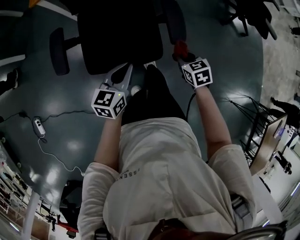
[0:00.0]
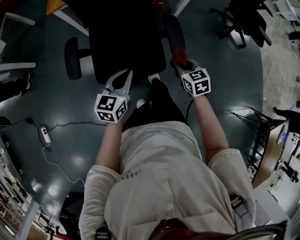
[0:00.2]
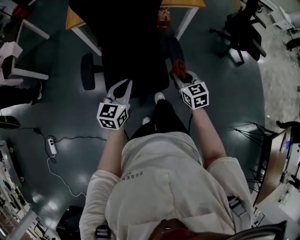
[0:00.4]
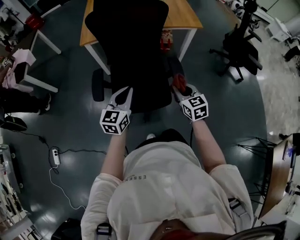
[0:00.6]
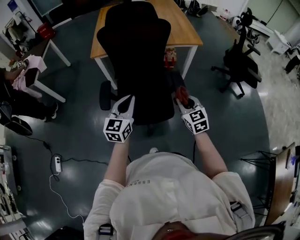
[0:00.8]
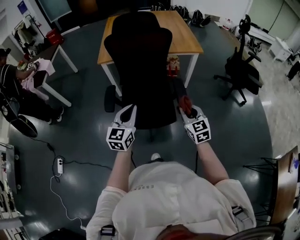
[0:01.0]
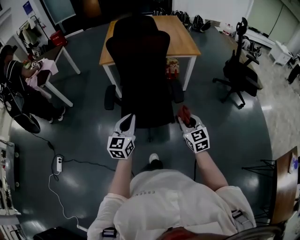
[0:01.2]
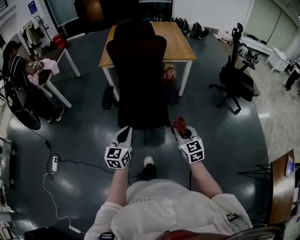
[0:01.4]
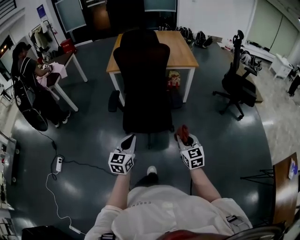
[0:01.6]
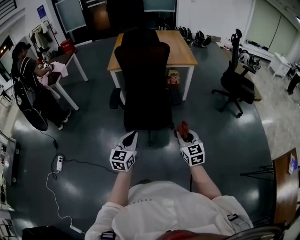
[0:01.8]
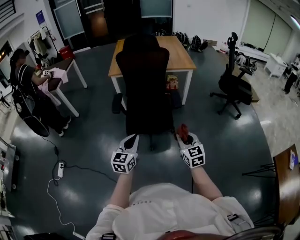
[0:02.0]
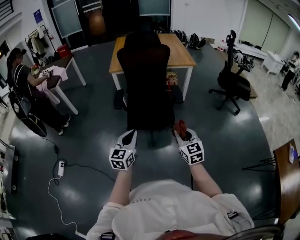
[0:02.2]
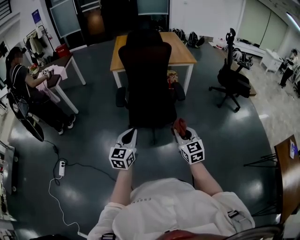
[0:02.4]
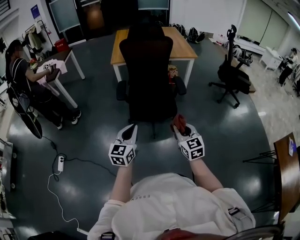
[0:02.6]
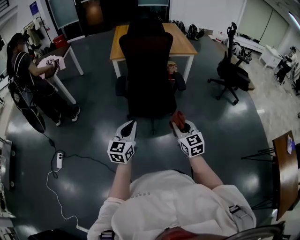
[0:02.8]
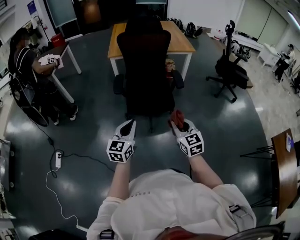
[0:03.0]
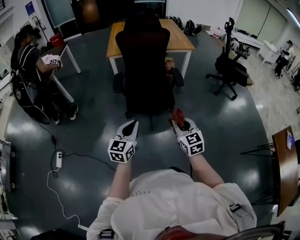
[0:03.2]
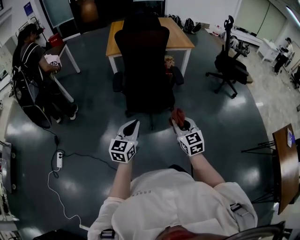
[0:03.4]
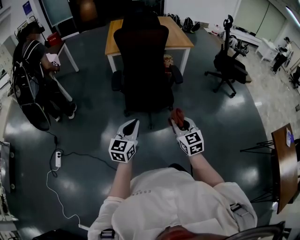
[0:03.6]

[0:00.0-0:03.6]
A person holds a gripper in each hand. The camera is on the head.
0:00.0 to 0:01.8: The grippers both shift backward and upward by some 40 cm. The right gripper tips its fingers upward by some 40 degrees. Meanwhile the left gripper changes its angle by about 30 degrees.
0:01.8 to 0:03.6: The two grippers go roughly 15 cm to the left and backward.

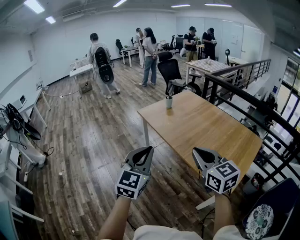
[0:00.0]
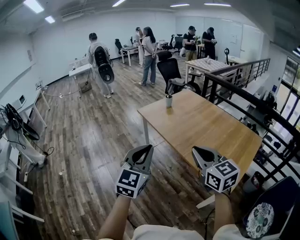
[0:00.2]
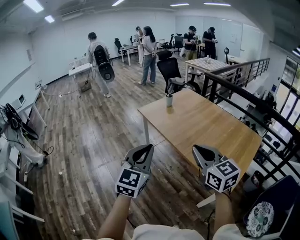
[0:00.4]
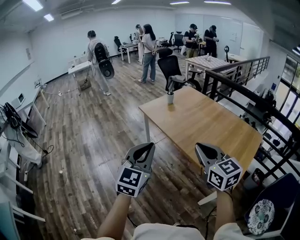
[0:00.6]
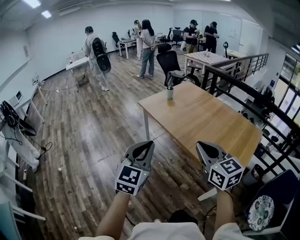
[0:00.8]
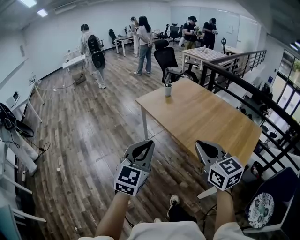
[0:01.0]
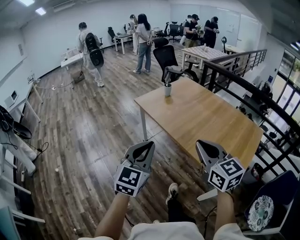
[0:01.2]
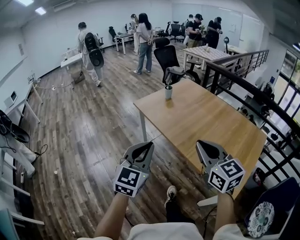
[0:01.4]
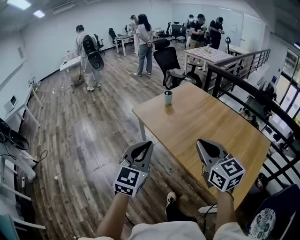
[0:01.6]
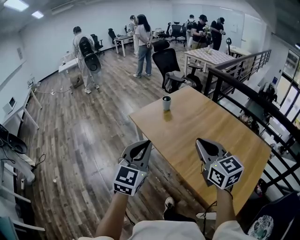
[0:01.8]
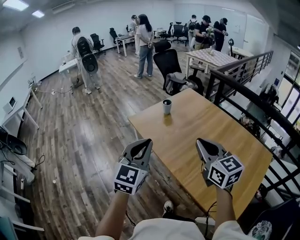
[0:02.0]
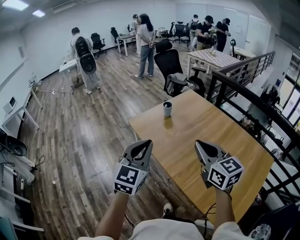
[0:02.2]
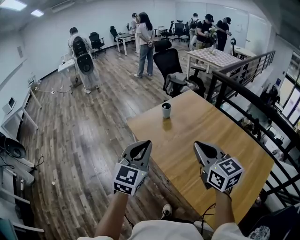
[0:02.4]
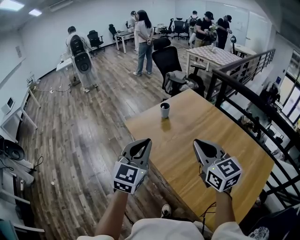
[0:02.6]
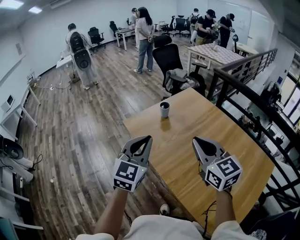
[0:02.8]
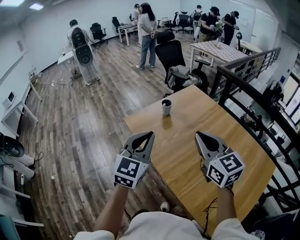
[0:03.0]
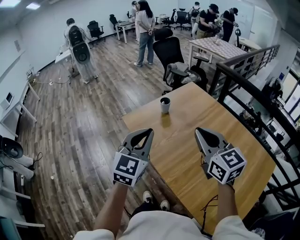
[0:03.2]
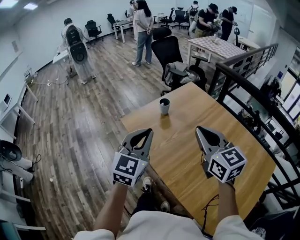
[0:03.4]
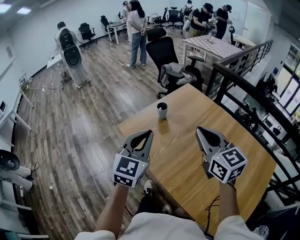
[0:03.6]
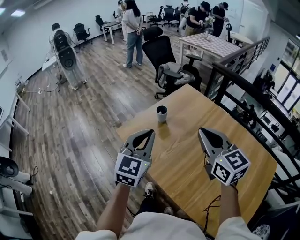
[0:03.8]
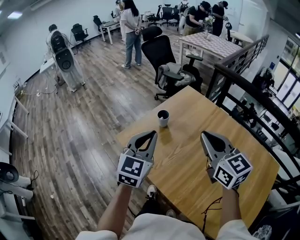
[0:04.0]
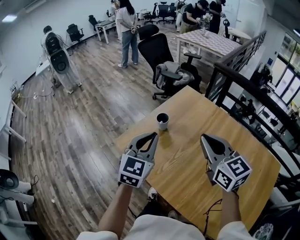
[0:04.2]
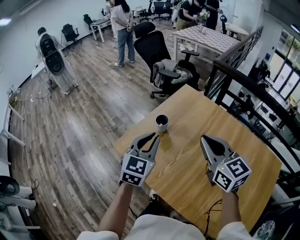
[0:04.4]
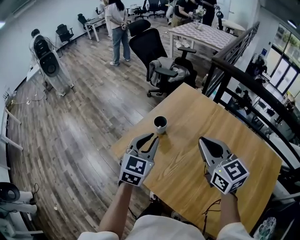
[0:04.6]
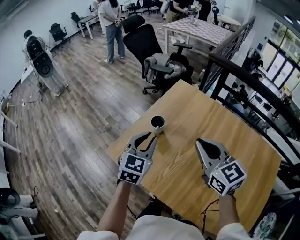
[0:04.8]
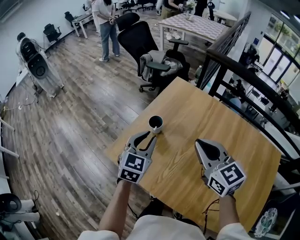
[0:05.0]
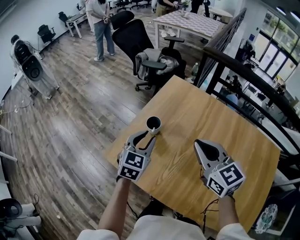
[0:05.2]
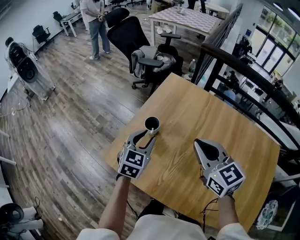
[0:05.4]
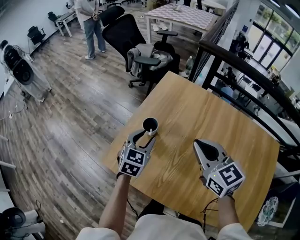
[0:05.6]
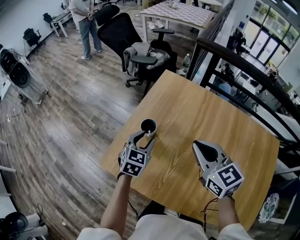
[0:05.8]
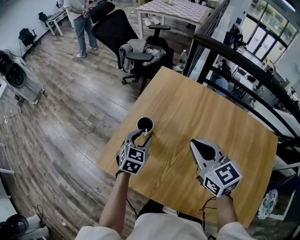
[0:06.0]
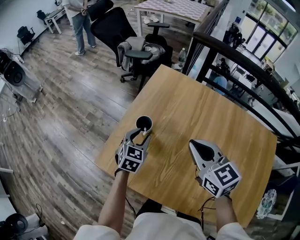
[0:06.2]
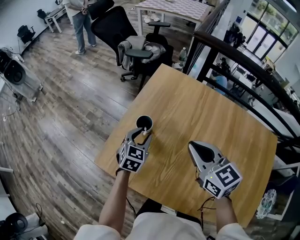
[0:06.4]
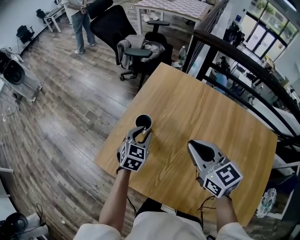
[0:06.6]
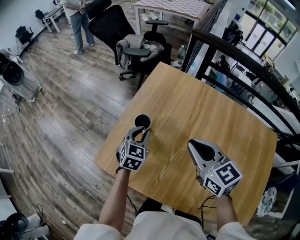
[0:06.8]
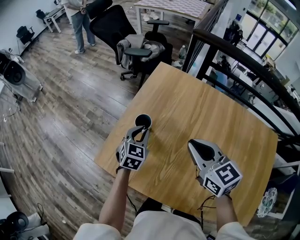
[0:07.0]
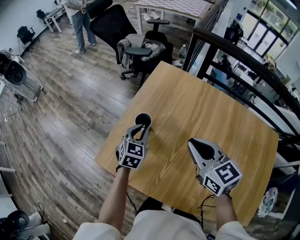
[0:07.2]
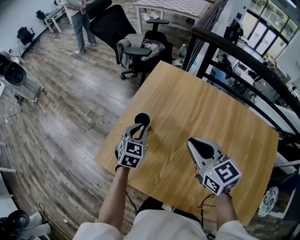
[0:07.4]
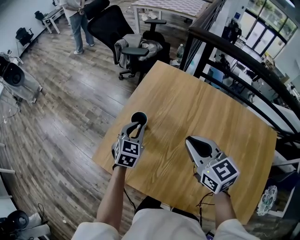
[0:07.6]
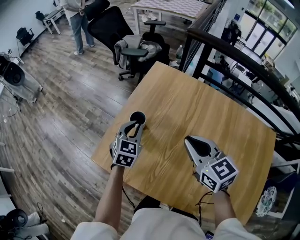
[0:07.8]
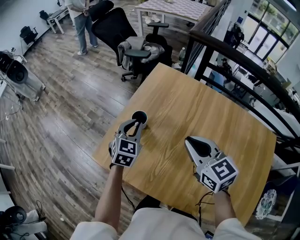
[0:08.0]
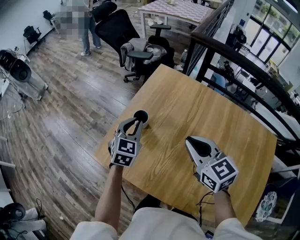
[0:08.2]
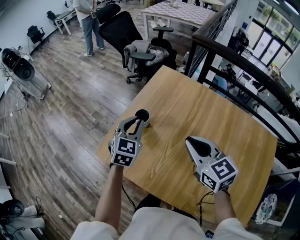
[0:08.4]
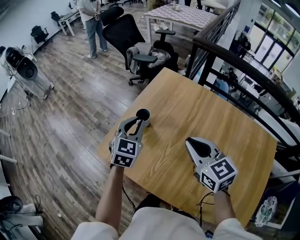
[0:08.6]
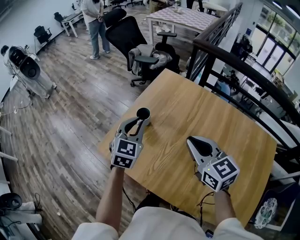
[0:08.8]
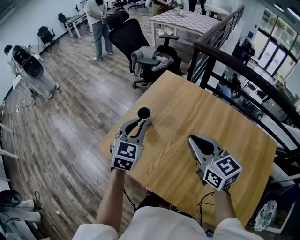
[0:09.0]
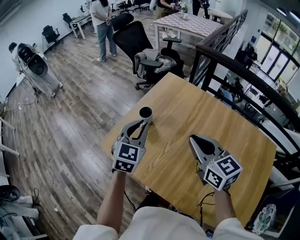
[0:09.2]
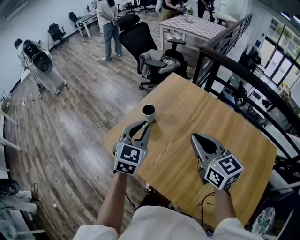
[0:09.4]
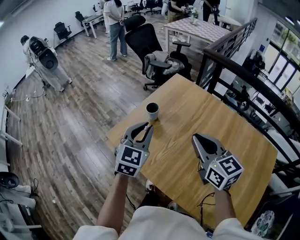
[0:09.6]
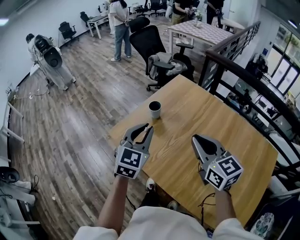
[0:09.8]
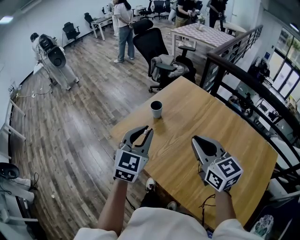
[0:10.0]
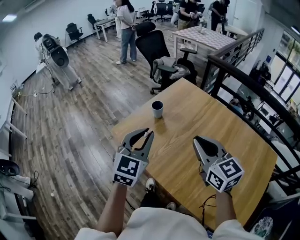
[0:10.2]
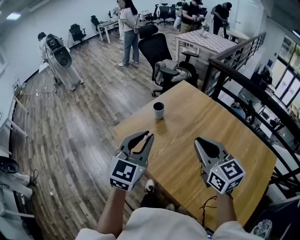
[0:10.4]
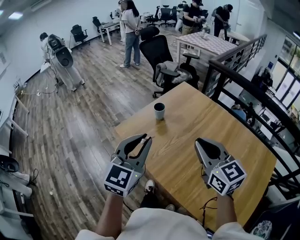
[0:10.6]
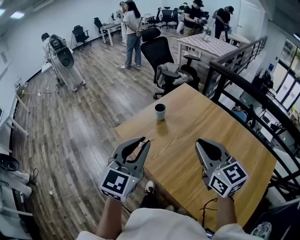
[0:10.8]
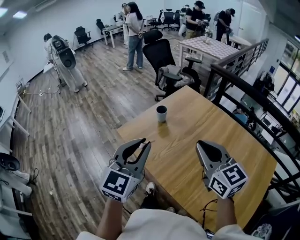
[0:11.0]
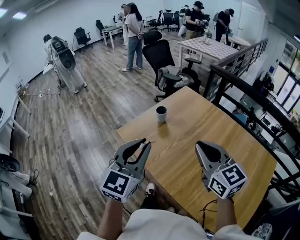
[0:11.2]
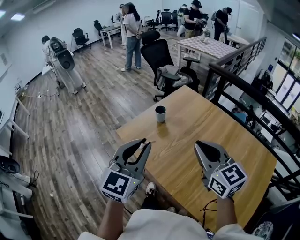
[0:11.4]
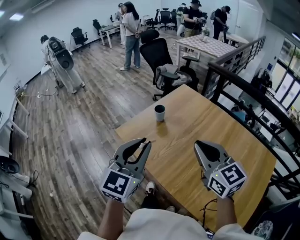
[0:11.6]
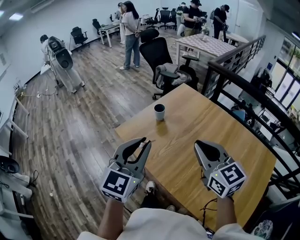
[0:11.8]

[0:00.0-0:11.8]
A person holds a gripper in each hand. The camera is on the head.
0:00.0 to 0:01.4: The right gripper heads forward, covering some 10 cm. The left gripper goes roughly 10 cm forward and downward.
0:01.4 to 0:03.0: Both grippers move forward, some 35 cm.
0:03.0 to 0:04.4: The grippers both shift forward by some 25 cm.
0:04.4 to 0:06.0: The right gripper shifts approximately 10 cm forward and downward. Meanwhile the left gripper moves downward and forward, roughly 25 cm, changes its angle by roughly 20 degrees, and opens up.
0:06.0 to 0:07.4: The left gripper closes.
0:07.4 to 0:08.8: The left gripper shifts approximately 15 cm upward and backward, while the right gripper goes approximately 5 cm backward.
0:08.8 to 0:10.4: The left gripper moves backward and upward, roughly 25 cm. The right gripper goes about 15 cm backward and upward.
0:10.4 to 0:11.8: The left gripper moves backward, about 5 cm.

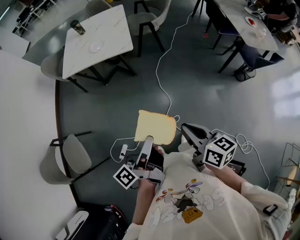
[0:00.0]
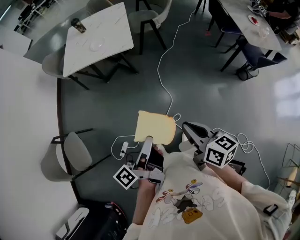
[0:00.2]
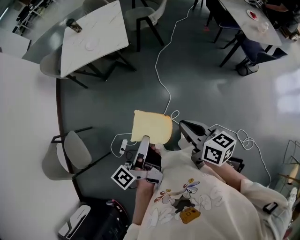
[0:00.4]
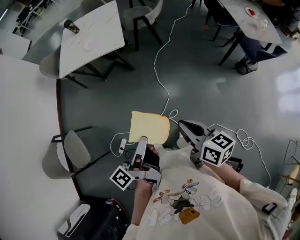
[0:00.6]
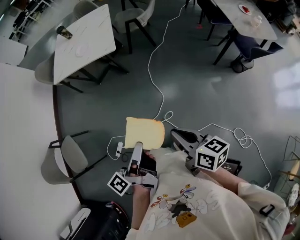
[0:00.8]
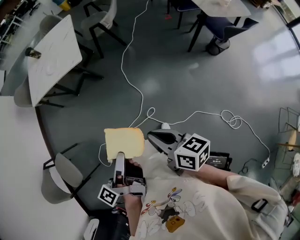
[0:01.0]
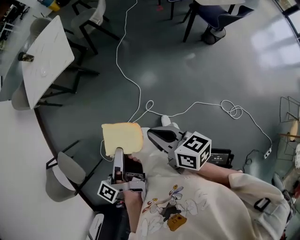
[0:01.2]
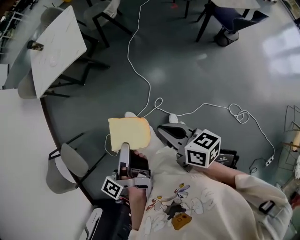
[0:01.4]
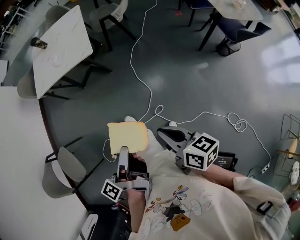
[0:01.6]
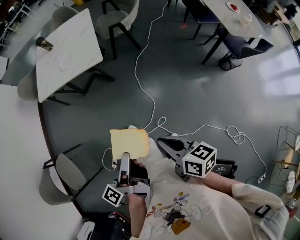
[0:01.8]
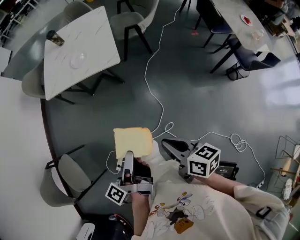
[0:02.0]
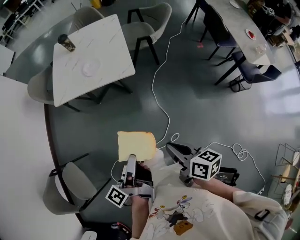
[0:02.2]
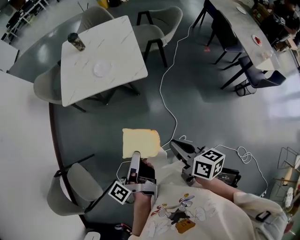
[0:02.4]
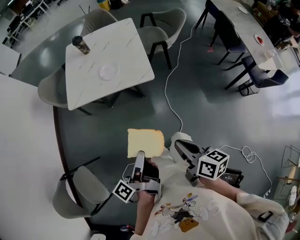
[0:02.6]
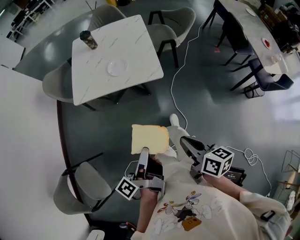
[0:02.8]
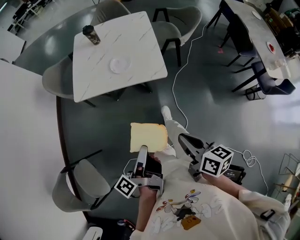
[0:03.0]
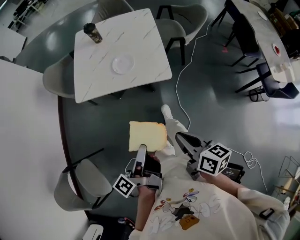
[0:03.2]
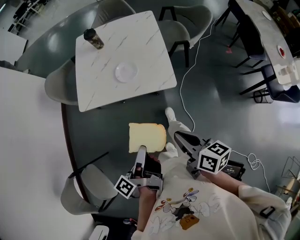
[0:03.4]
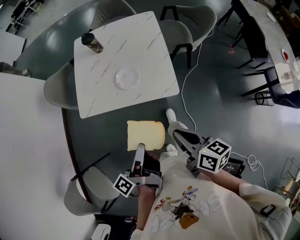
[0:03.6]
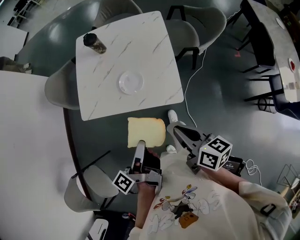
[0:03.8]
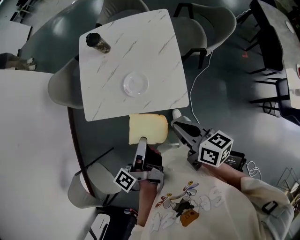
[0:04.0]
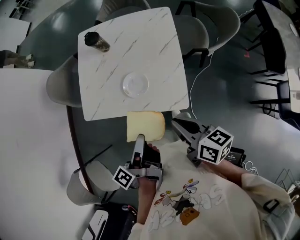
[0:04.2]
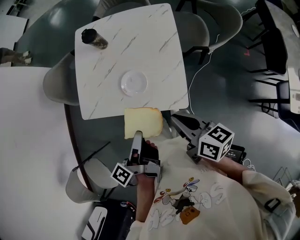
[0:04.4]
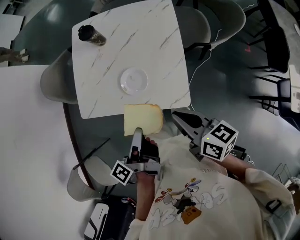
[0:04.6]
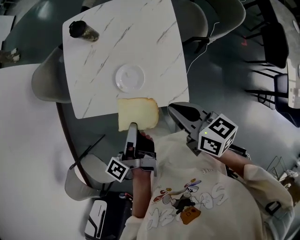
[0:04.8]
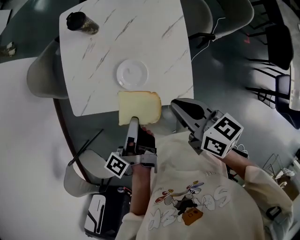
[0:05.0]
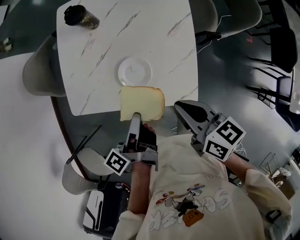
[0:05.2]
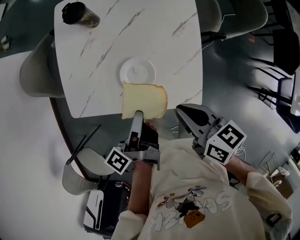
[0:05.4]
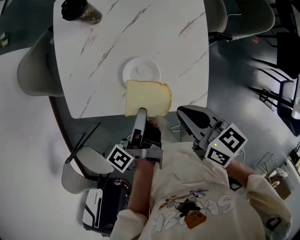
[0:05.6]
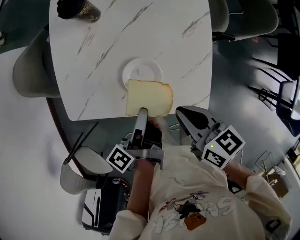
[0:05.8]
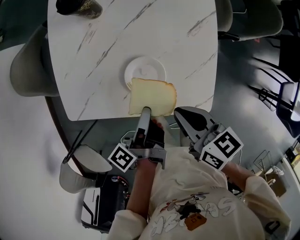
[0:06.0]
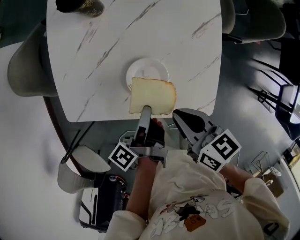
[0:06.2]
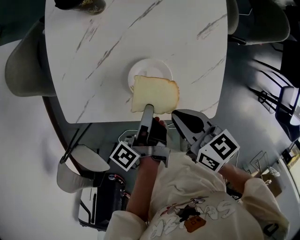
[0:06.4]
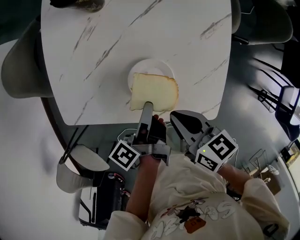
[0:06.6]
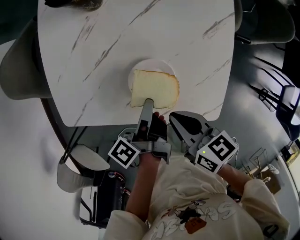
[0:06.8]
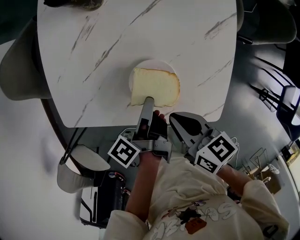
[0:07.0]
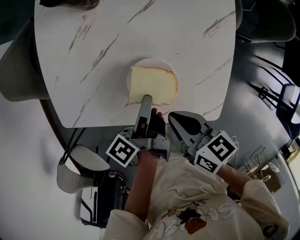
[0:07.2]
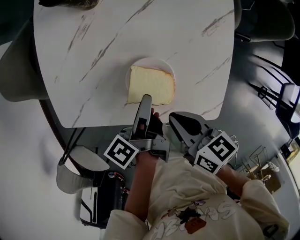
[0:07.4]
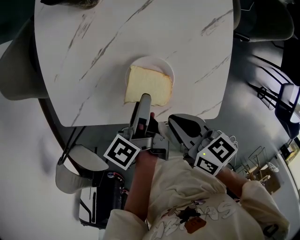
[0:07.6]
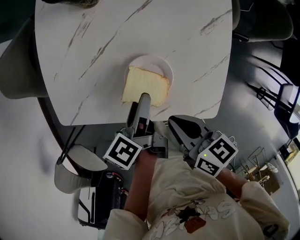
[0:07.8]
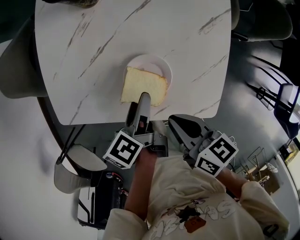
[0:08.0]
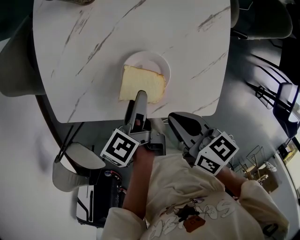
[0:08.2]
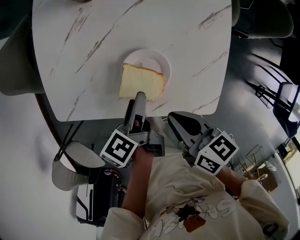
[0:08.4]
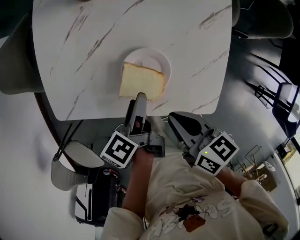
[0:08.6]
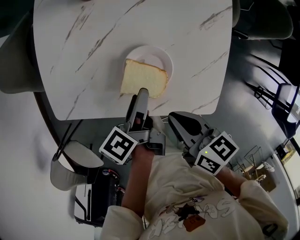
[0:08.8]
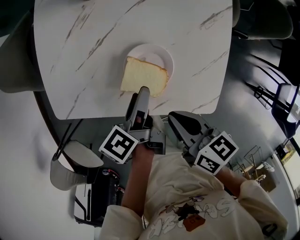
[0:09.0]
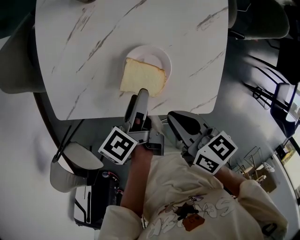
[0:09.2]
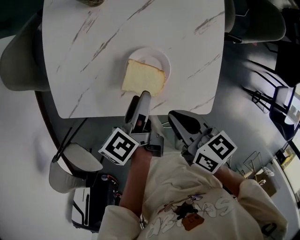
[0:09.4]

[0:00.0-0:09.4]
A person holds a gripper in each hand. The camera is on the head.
0:00.0 to 0:01.6: The right gripper moves about 10 cm.
0:01.6 to 0:03.2: The right gripper shifts by some 40 cm.
0:03.2 to 0:04.8: The right gripper changes place by roughly 40 cm.
0:04.8 to 0:06.2: The right gripper travels downward by approximately 15 cm.
0:06.2 to 0:07.8: The right gripper shifts by some 5 cm.
